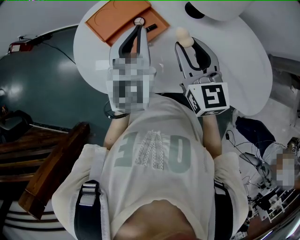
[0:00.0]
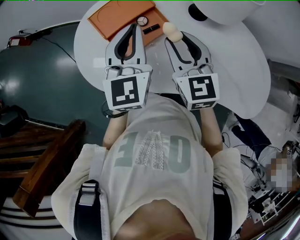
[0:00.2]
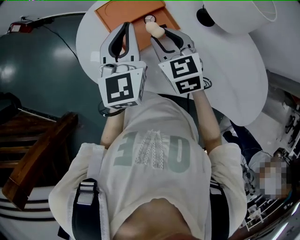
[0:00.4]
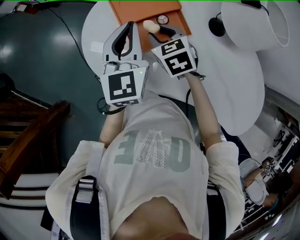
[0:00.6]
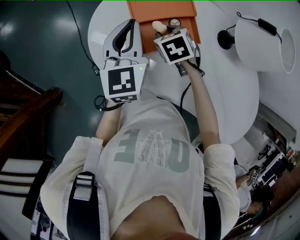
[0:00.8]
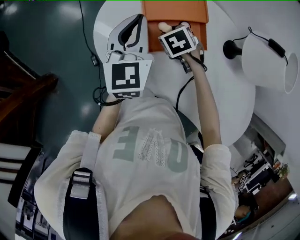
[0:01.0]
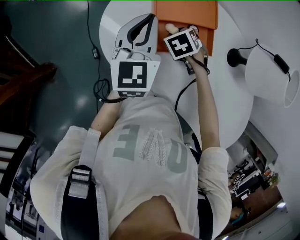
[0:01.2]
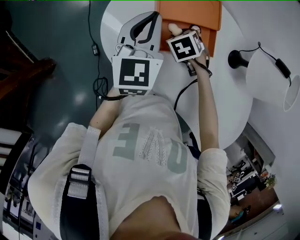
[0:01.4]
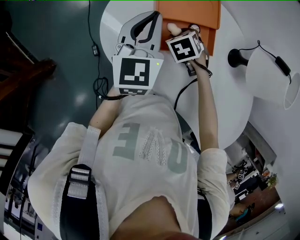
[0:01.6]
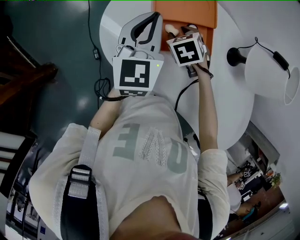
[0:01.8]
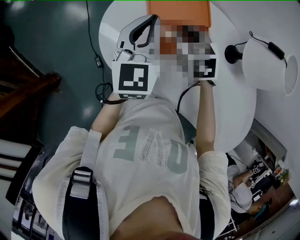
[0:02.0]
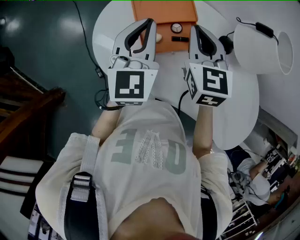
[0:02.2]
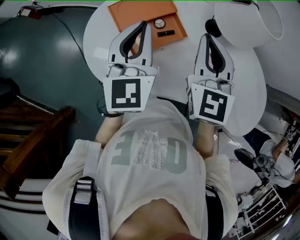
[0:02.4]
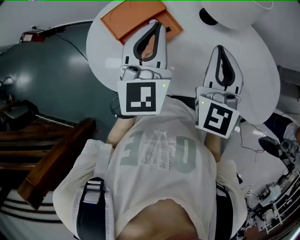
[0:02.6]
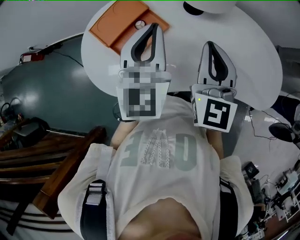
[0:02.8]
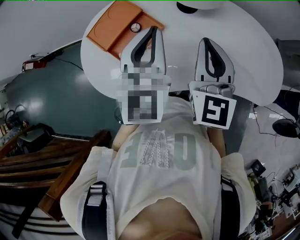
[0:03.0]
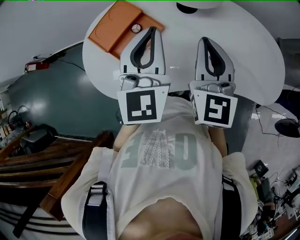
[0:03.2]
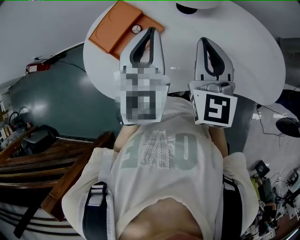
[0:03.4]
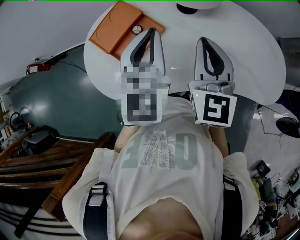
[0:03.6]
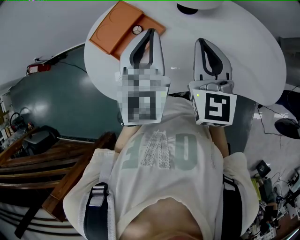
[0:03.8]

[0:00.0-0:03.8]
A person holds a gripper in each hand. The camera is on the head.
0:00.0 to 0:01.2: The left gripper shifts by some 15 cm, and swivels about 30 degrees, while the right gripper goes roughly 20 cm downward, and tips its fingers downward by some 60 degrees.
0:01.2 to 0:02.6: The left gripper shifts by about 20 cm, and changes its angle by about 30 degrees; the right gripper is displaced upward by approximately 30 cm, tilts its fingers some 60 degrees upward, and closes its fingers.
0:02.6 to 0:03.8: The left gripper is displaced to the right by about 5 cm.

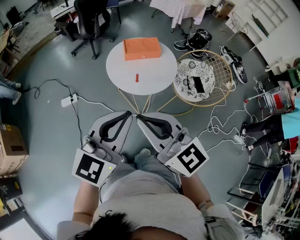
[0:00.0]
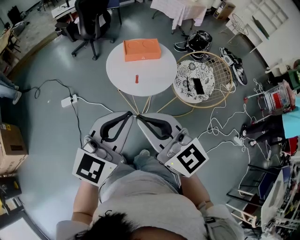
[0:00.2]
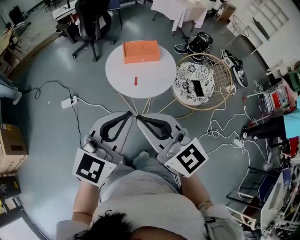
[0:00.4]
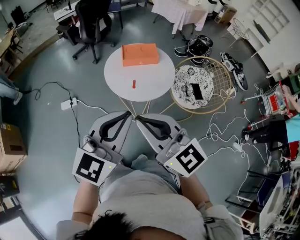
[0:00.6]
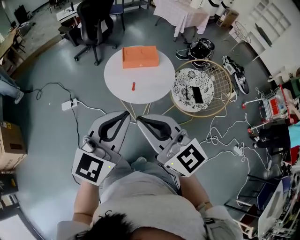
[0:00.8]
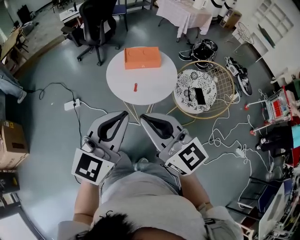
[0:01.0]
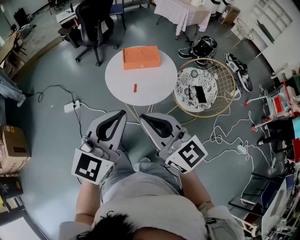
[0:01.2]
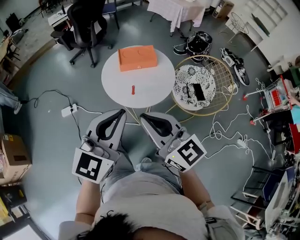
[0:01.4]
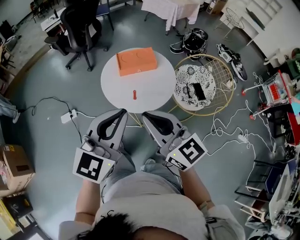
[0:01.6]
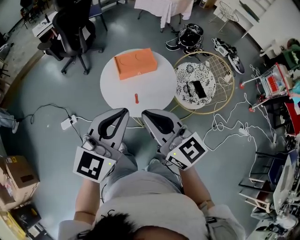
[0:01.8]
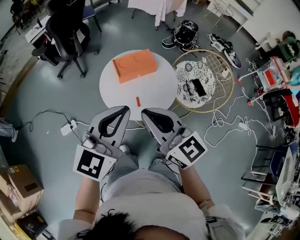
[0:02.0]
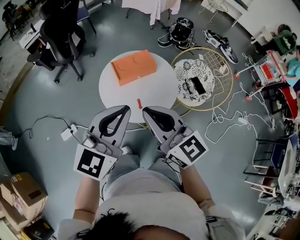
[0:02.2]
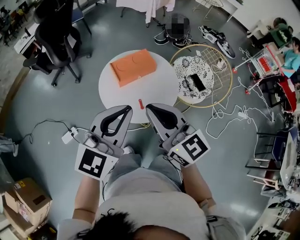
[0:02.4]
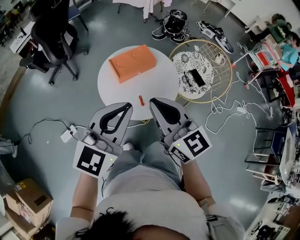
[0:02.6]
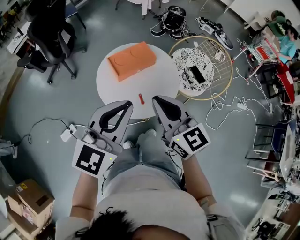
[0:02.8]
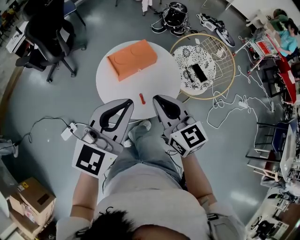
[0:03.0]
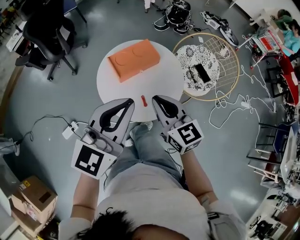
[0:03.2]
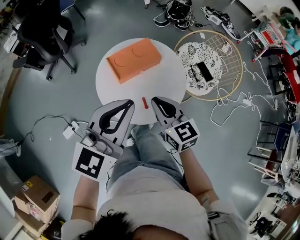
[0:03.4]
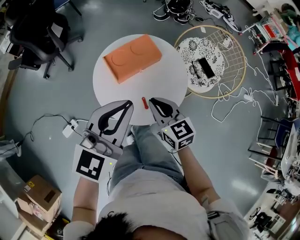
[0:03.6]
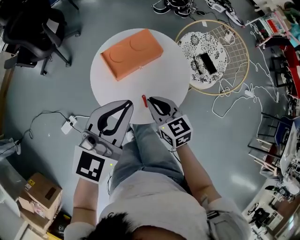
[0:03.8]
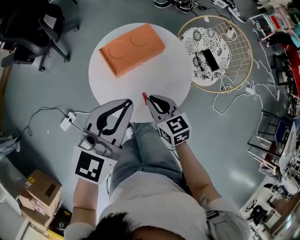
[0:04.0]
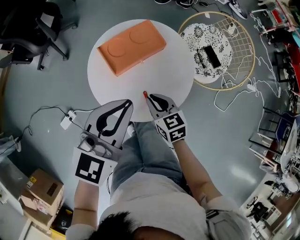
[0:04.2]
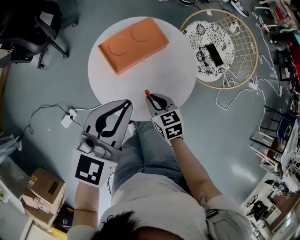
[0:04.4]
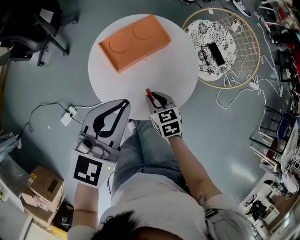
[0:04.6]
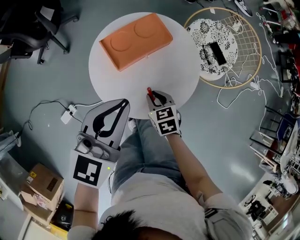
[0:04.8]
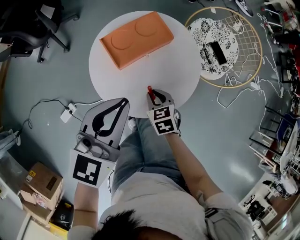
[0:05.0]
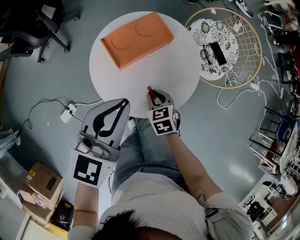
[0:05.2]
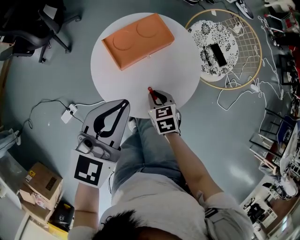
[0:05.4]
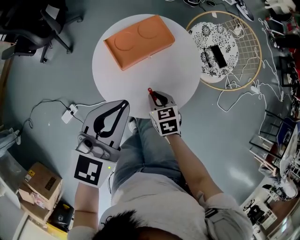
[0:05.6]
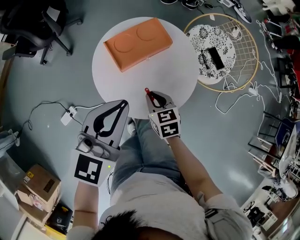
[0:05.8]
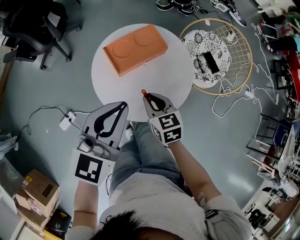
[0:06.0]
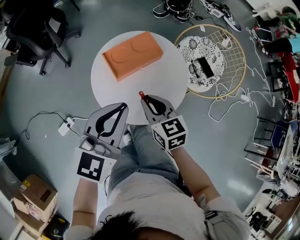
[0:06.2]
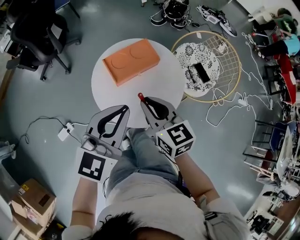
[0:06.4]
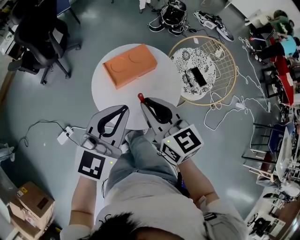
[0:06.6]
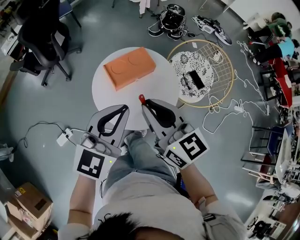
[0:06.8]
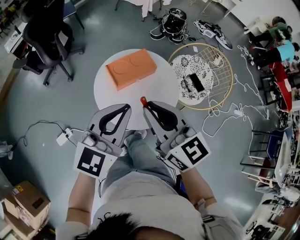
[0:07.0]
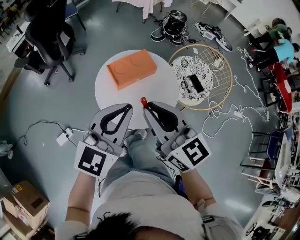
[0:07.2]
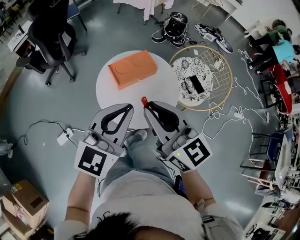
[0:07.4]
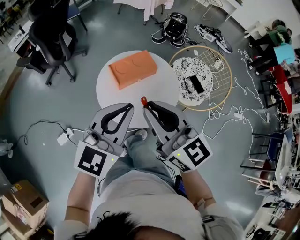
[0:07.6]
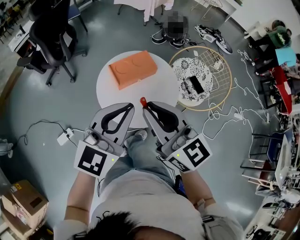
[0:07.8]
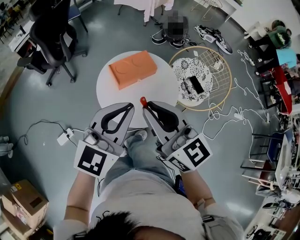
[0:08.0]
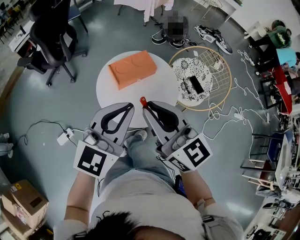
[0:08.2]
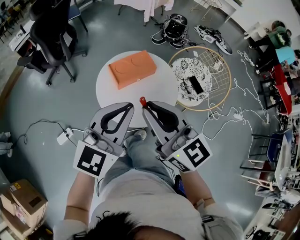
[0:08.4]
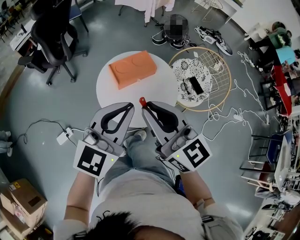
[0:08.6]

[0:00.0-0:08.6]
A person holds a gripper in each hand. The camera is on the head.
0:00.0 to 0:01.4: The right gripper shifts about 10 cm forward and to the right; the left gripper travels forward by roughly 10 cm.
0:01.4 to 0:02.8: The right gripper changes place by approximately 20 cm, and turns by approximately 30 degrees. Meanwhile the left gripper ends up about 20 cm from where it was, and turns by about 20 degrees.
0:02.8 to 0:04.4: The right gripper heads downward, covering approximately 30 cm, and points its fingers about 40 degrees further downward. The left gripper is displaced forward and downward by approximately 15 cm.
0:04.4 to 0:05.8: The grippers make only small movements.
0:05.8 to 0:07.2: The right gripper goes about 30 cm upward, and angles its fingers upward, by approximately 40 degrees; the left gripper travels upward and backward by approximately 10 cm.
0:07.2 to 0:08.6: There are only small adjustments of the grippers.

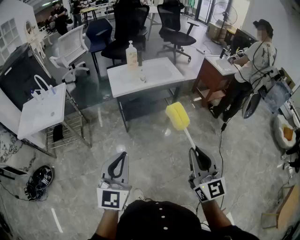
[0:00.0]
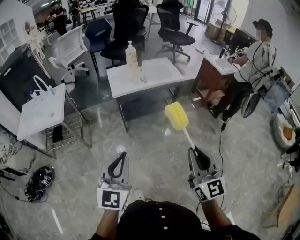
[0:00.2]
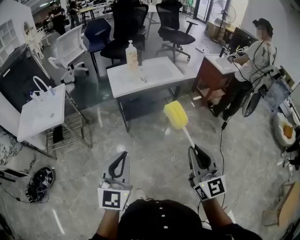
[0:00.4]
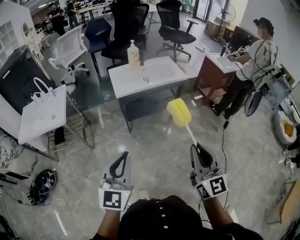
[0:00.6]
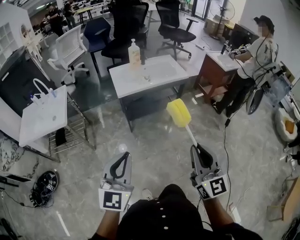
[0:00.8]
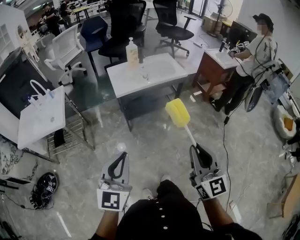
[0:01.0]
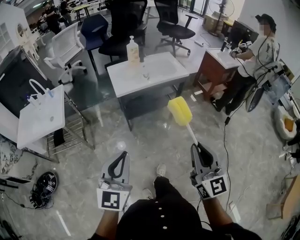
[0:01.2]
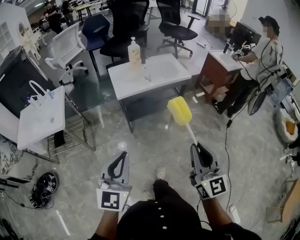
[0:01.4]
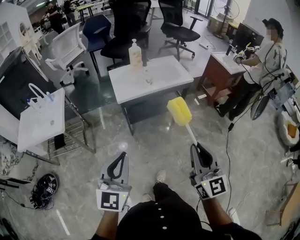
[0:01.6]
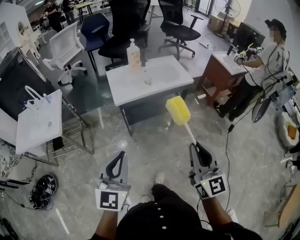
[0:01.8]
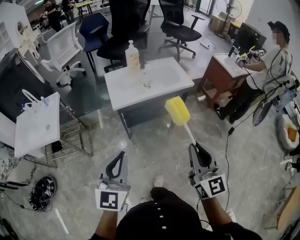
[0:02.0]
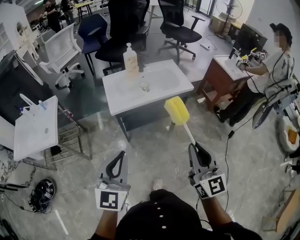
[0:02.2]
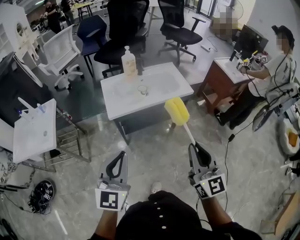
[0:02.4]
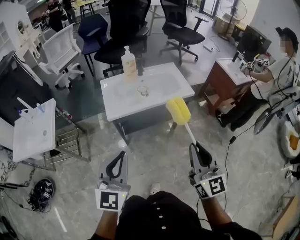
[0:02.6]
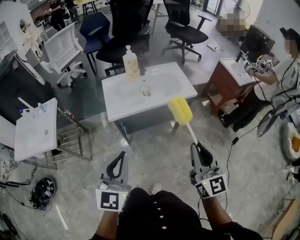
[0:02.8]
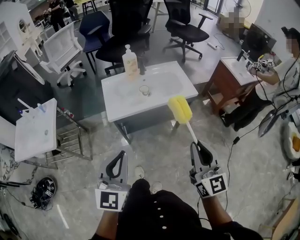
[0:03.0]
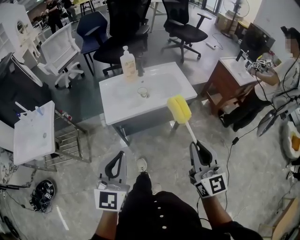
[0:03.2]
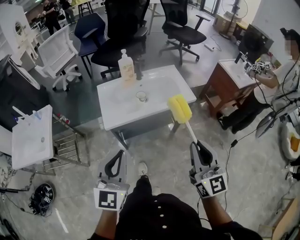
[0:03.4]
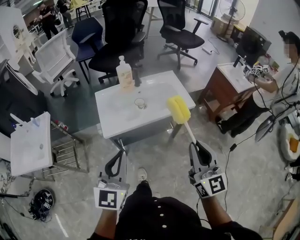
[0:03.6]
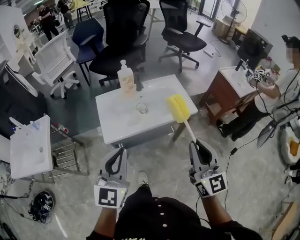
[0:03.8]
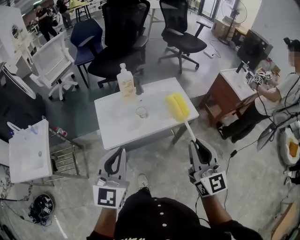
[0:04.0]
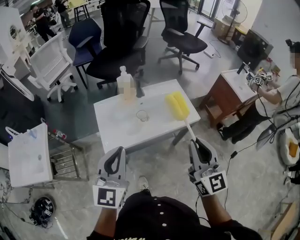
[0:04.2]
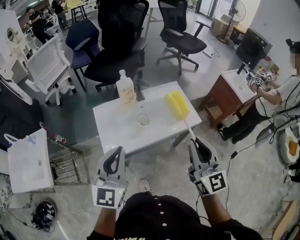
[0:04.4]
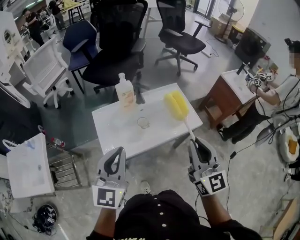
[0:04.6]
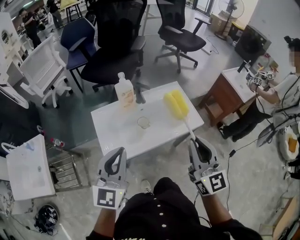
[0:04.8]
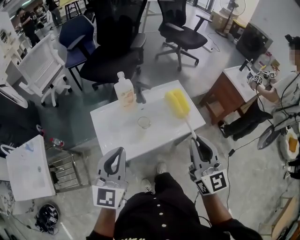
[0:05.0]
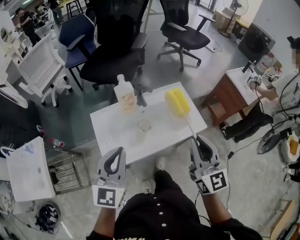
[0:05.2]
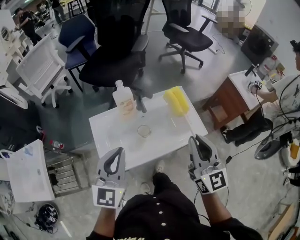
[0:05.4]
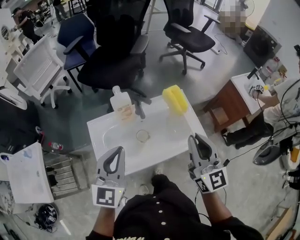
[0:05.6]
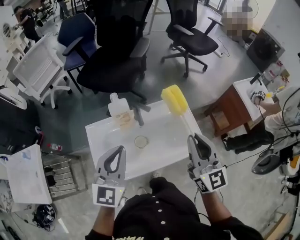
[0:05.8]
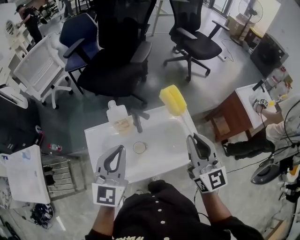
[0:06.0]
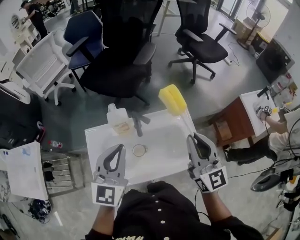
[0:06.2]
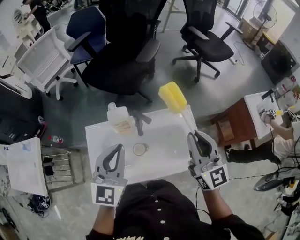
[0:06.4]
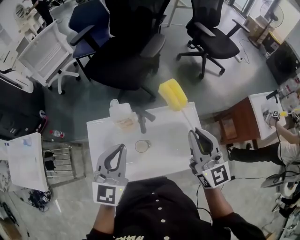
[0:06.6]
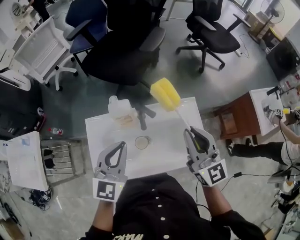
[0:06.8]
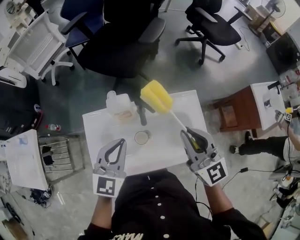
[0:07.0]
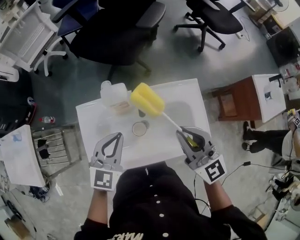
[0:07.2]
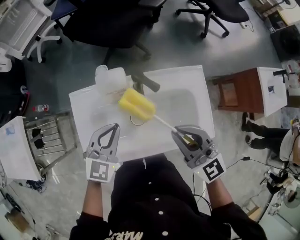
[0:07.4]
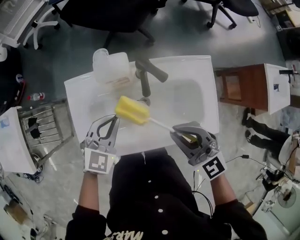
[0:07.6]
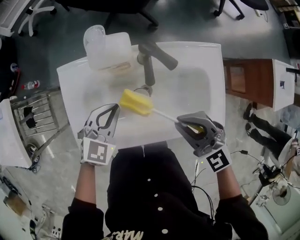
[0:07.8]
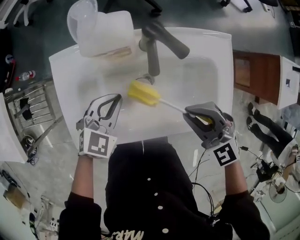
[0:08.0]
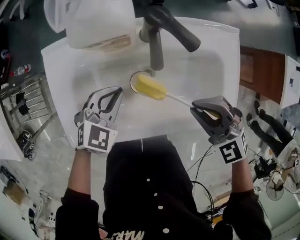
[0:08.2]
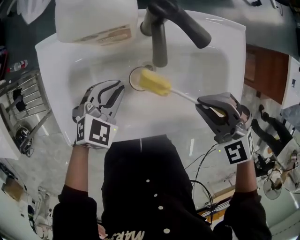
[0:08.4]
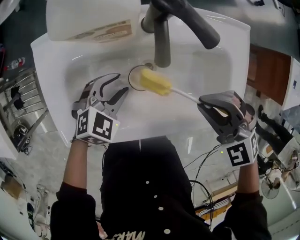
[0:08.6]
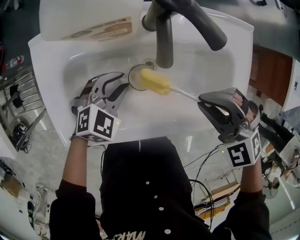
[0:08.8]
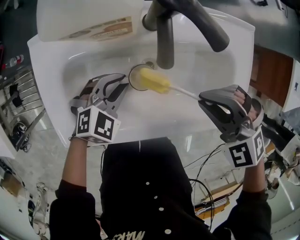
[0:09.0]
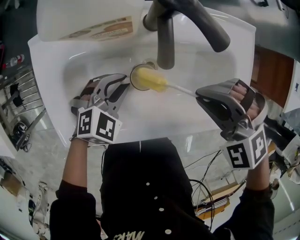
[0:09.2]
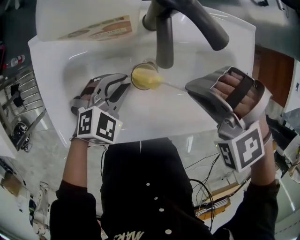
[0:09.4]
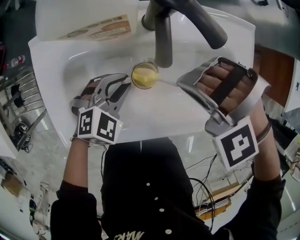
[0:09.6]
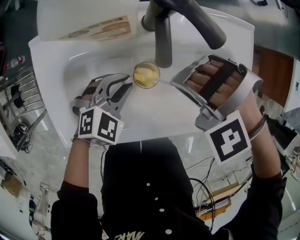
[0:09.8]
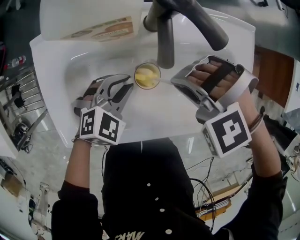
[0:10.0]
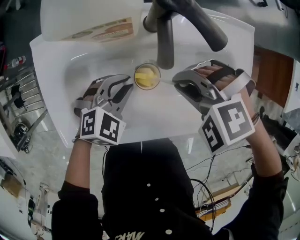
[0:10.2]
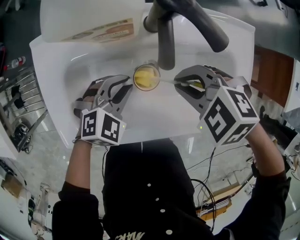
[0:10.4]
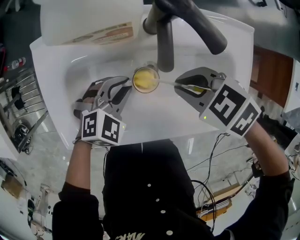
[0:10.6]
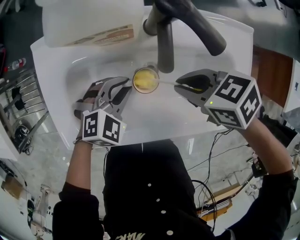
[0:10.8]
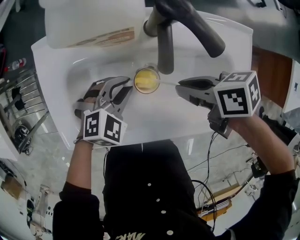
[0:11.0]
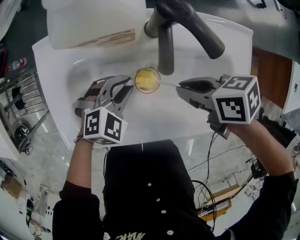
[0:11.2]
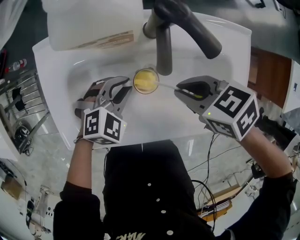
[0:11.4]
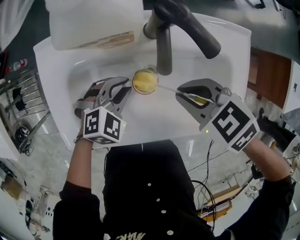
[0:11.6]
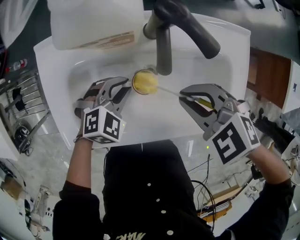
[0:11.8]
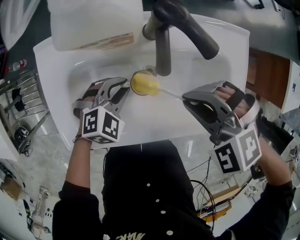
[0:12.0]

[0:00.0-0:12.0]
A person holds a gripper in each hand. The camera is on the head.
0:00.0 to 0:01.6: Both grippers travel together forward and to the left, about 15 cm.
0:01.6 to 0:03.0: Both grippers move forward, about 20 cm.
0:03.0 to 0:04.4: Both grippers move forward, some 25 cm.
0:04.4 to 0:06.0: The two grippers go approximately 25 cm forward.
0:06.0 to 0:07.6: The left gripper moves downward, some 25 cm, and changes its angle by about 30 degrees. The right gripper shifts about 20 cm downward and to the left, and turns by approximately 40 degrees.
0:07.6 to 0:09.0: The grippers both shift downward by roughly 15 cm. The right gripper tips its fingers downward by some 40 degrees. Meanwhile the left gripper turns by roughly 20 degrees, and opens and closes again.
0:09.0 to 0:10.4: The right gripper shifts by approximately 10 cm, and rotates some 30 degrees.
0:10.4 to 0:12.0: The right gripper is displaced upward by approximately 5 cm, and rotates approximately 20 degrees.
